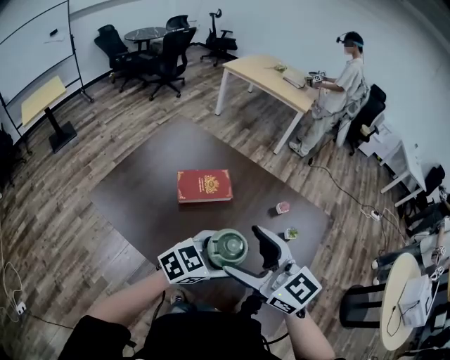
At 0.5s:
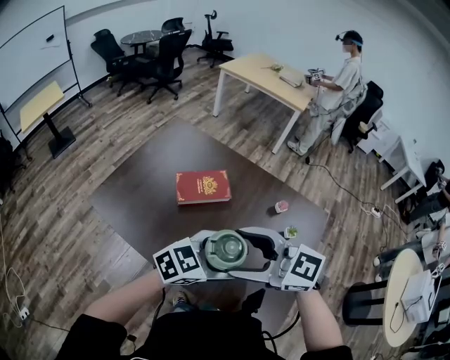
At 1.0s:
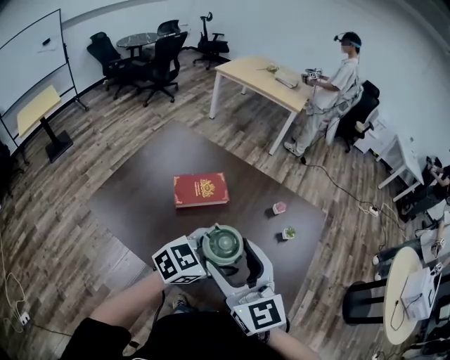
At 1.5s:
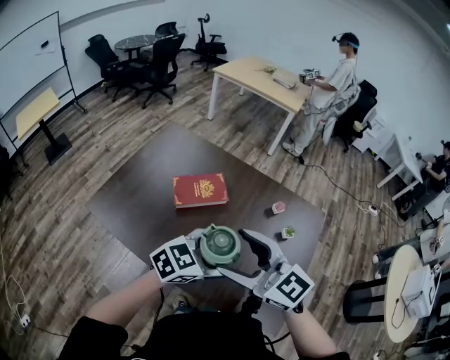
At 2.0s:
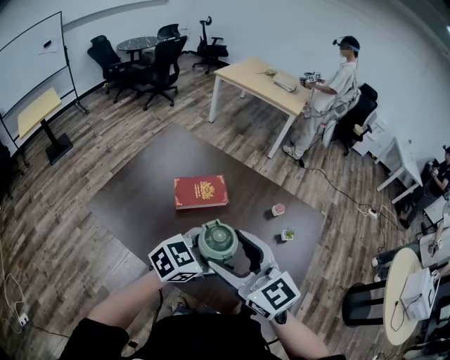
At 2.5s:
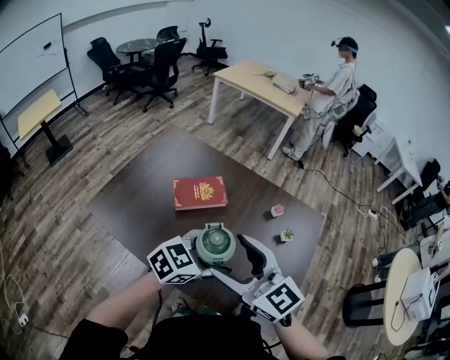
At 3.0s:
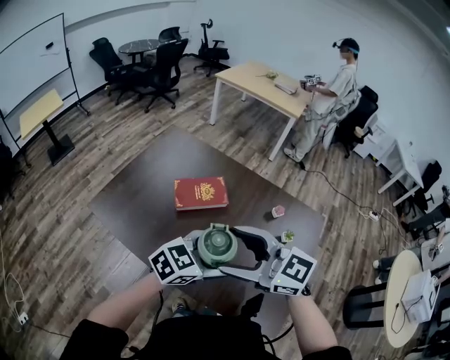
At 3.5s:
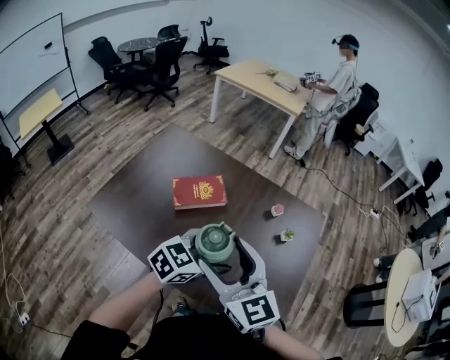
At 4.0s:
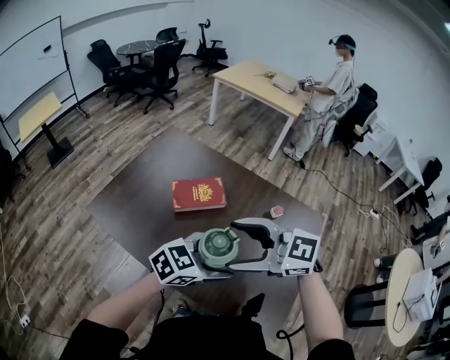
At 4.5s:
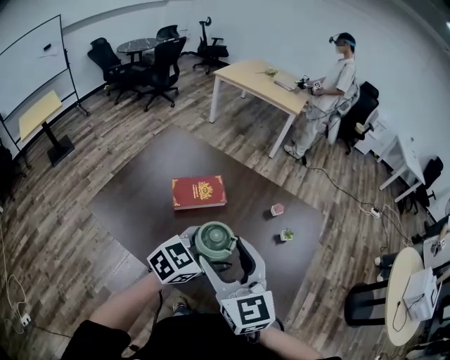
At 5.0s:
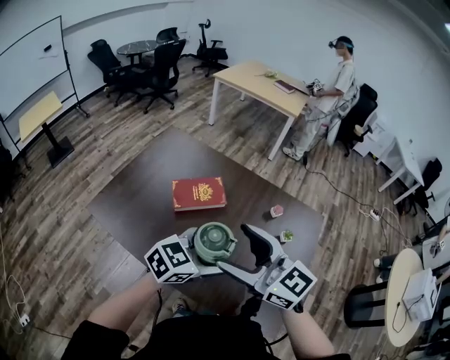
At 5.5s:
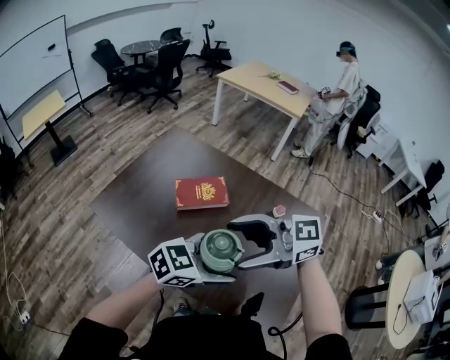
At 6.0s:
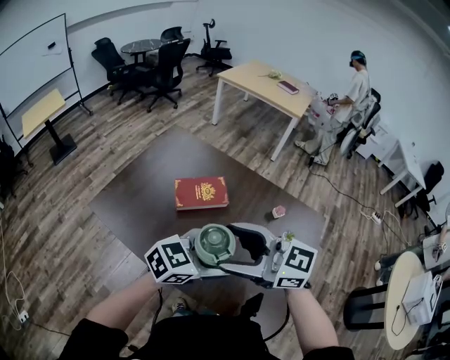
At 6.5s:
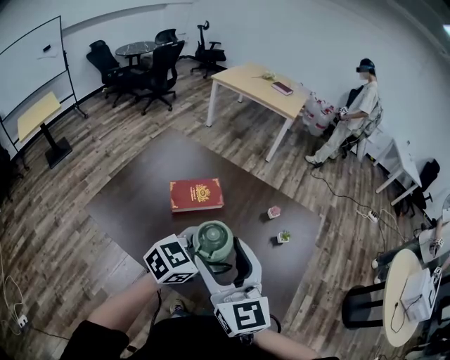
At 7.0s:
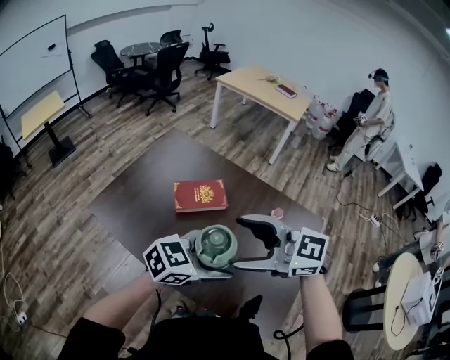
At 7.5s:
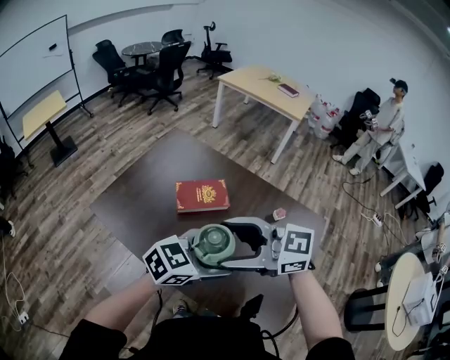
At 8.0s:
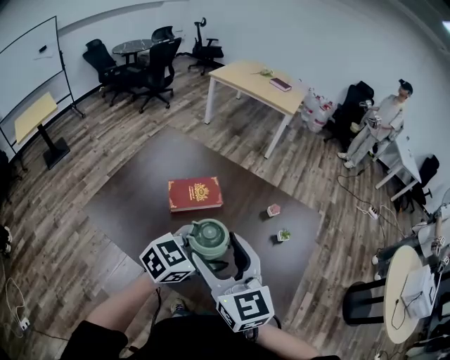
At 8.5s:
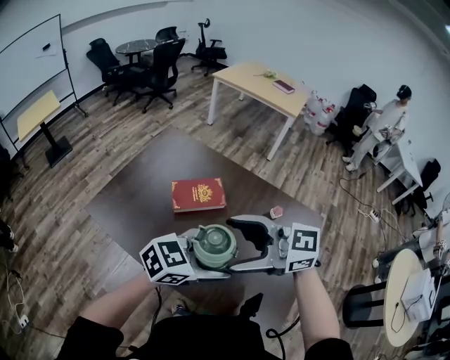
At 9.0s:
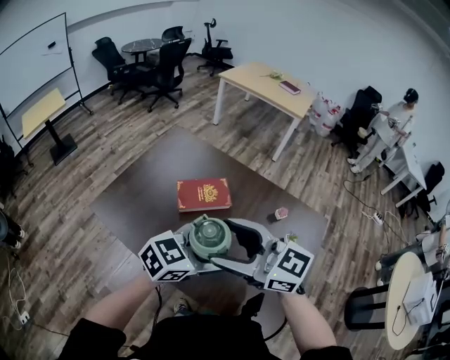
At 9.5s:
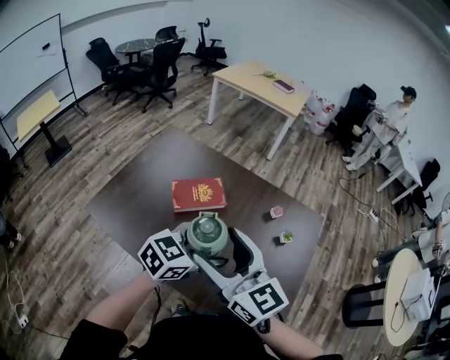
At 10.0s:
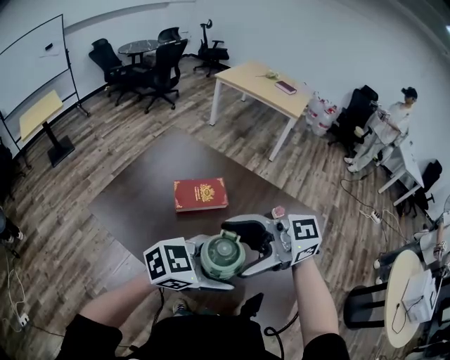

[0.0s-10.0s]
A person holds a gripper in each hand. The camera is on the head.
2.0s to 4.0s: The right gripper swivels some 40 degrees.
6.0s to 8.0s: The right gripper rotates approximately 50 degrees.
8.0s to 10.0s: The right gripper swivels some 70 degrees. Meanwhile the left gripper ends up approximately 5 cm from where it was.

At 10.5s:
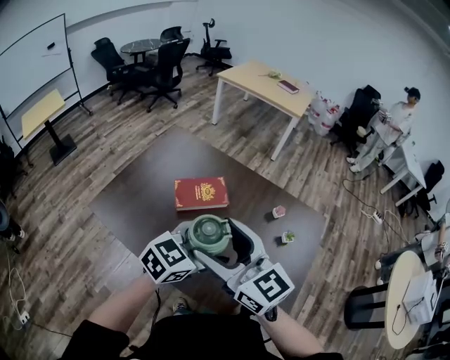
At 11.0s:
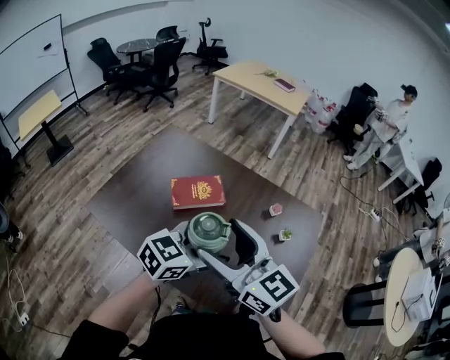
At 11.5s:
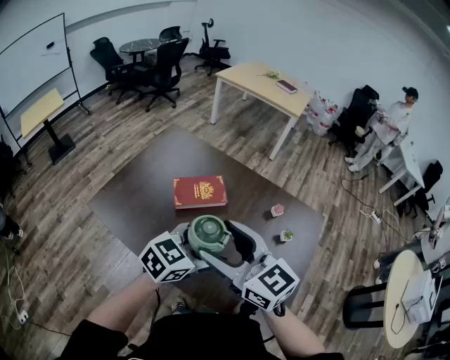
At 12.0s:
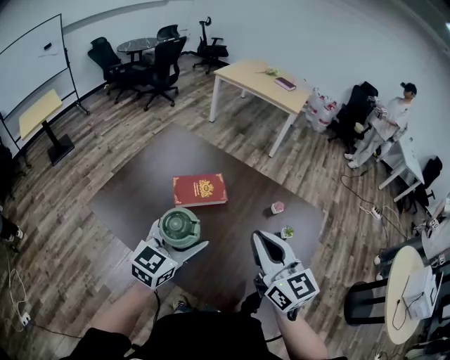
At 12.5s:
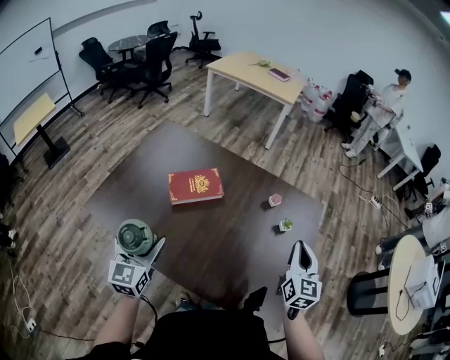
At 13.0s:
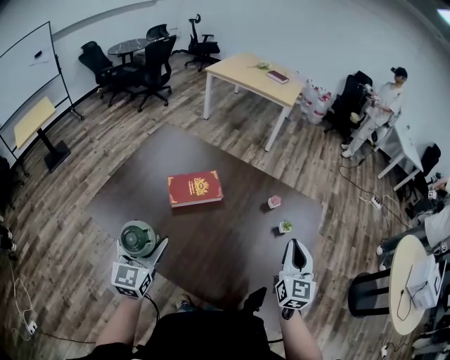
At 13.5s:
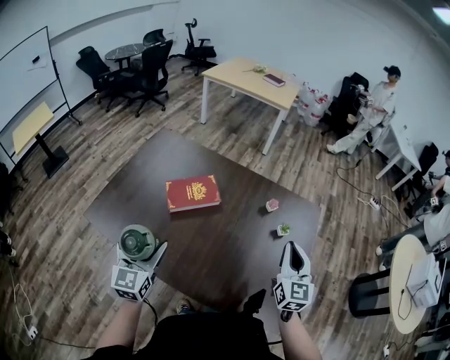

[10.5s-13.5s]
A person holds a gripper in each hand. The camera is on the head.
10.5s to 12.0s: The left gripper heads to the left, covering about 5 cm, and rotates approximately 20 degrees; the right gripper moves to the right, roughly 10 cm, and closes.
12.0s to 13.5s: The right gripper travels to the right and downward by about 20 cm, and swivels roughly 40 degrees, while the left gripper moves to the left, about 10 cm, and changes its angle by about 20 degrees.

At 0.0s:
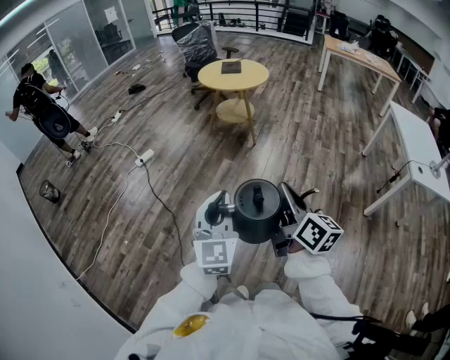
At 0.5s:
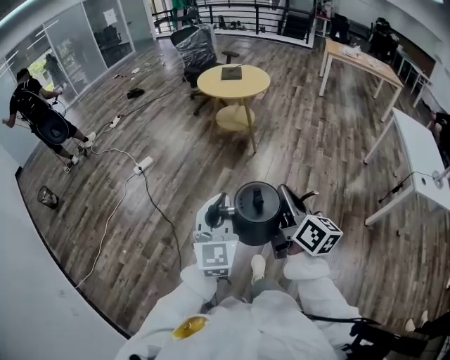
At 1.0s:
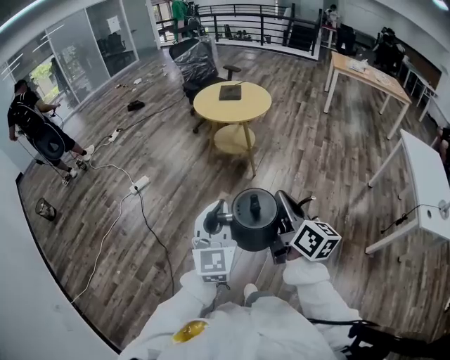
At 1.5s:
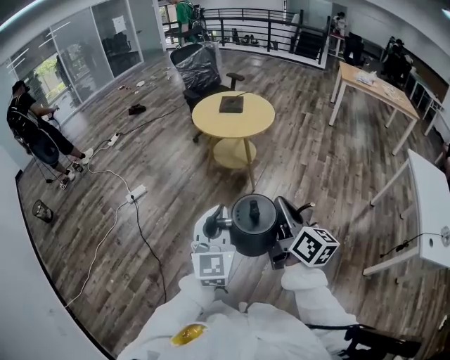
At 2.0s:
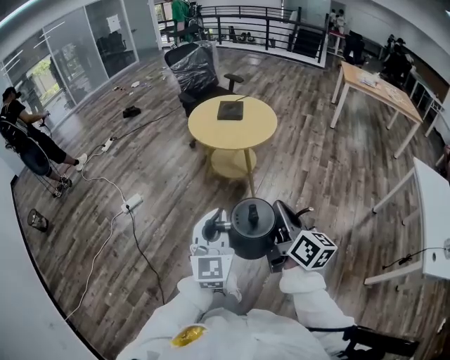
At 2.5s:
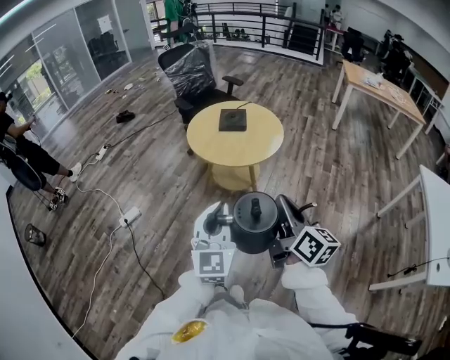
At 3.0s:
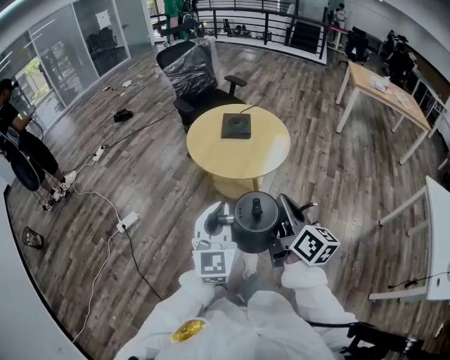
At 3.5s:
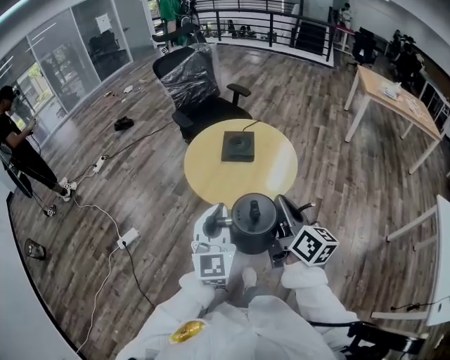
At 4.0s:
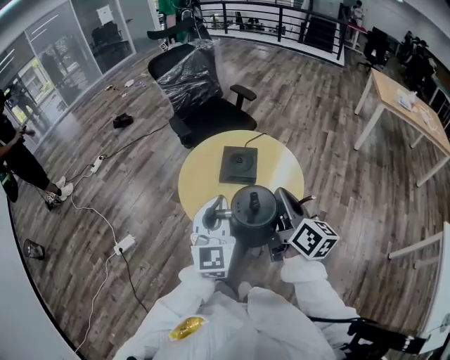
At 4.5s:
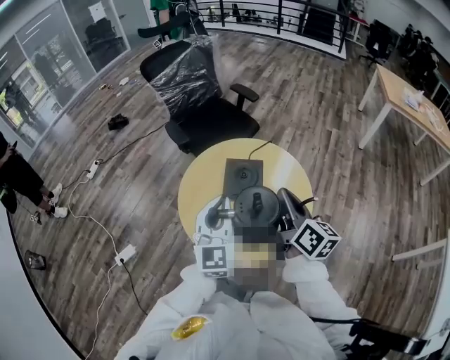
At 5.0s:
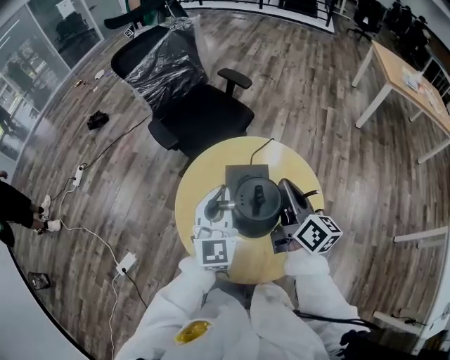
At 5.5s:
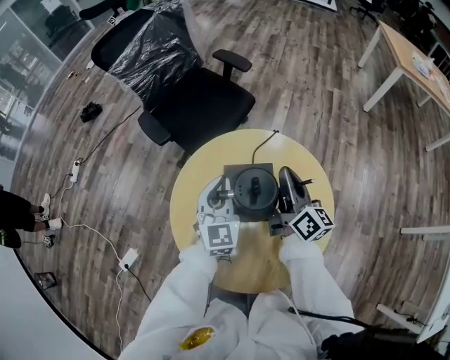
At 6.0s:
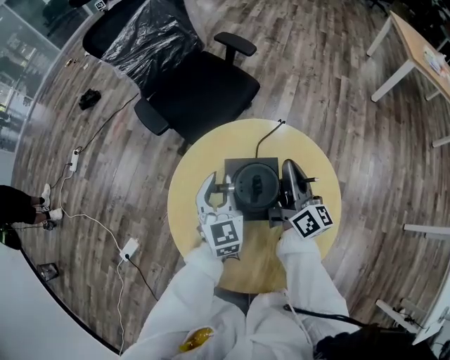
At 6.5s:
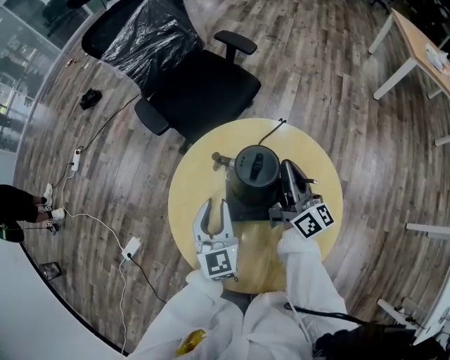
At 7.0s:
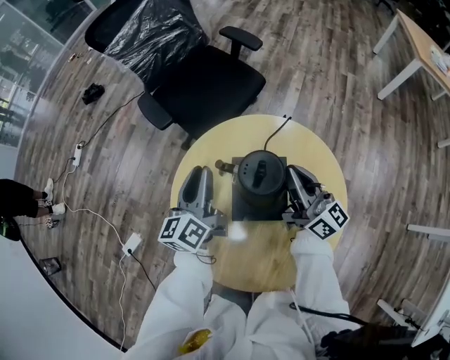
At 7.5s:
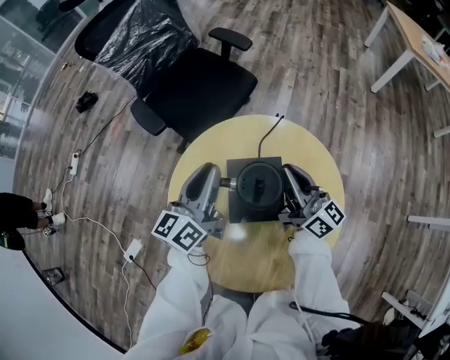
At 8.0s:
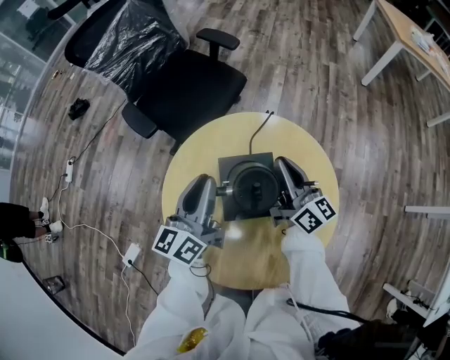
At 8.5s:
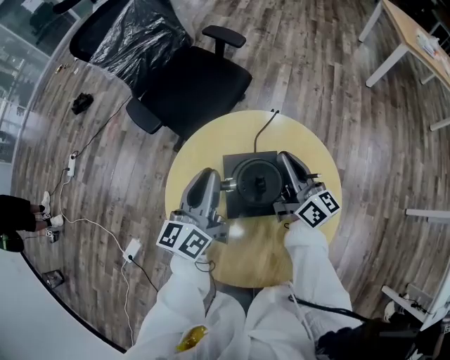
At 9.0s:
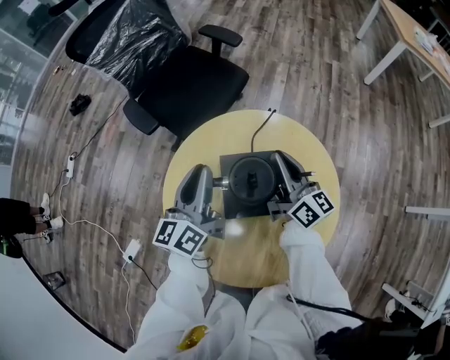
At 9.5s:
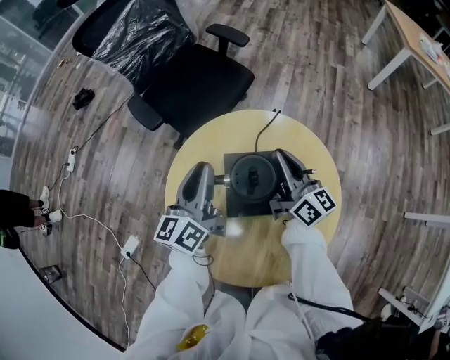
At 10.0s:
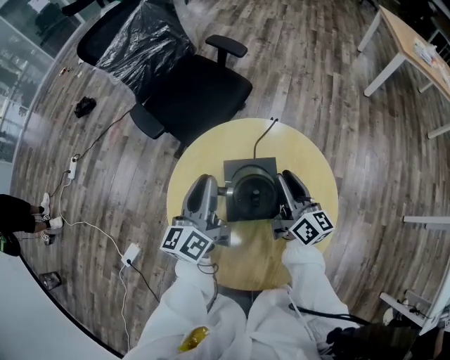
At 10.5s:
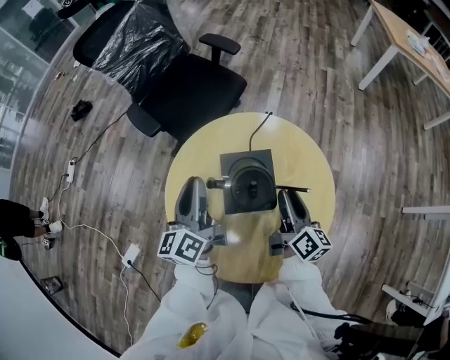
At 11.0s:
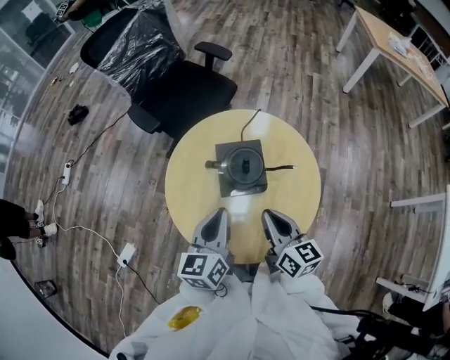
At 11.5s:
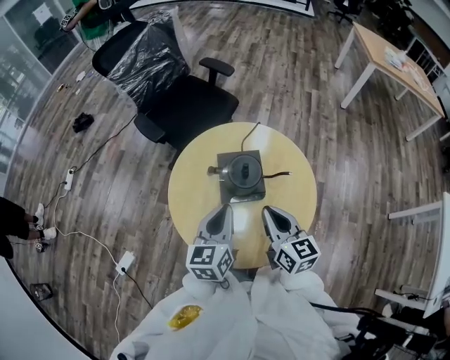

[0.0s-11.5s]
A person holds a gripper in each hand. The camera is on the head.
0.0s to 2.0s: Both grippers are carried forward, about 50 cm.
2.0s to 4.0s: The pair of grippers is taken forward, roughly 60 cm.
4.0s to 6.0s: The two grippers go some 40 cm forward and downward.
6.0s to 7.5s: The left gripper shifts approximately 10 cm upward, moves roughly 5 cm backward and comes back, and changes its angle by about 50 degrees.
7.5s to 9.5s: The grippers move only a little.
9.5s to 11.5s: Both grippers move backward, about 20 cm. The right gripper rotates approximately 30 degrees, and opens, then closes once more. The left gripper changes its angle by approximately 20 degrees.

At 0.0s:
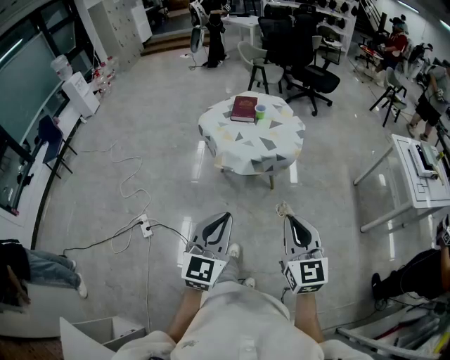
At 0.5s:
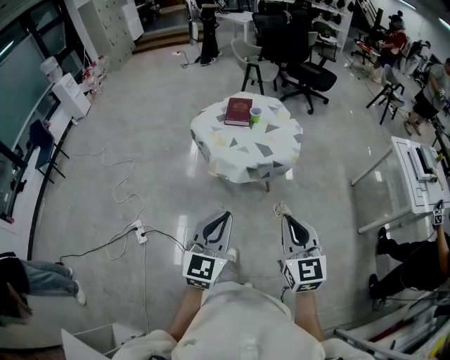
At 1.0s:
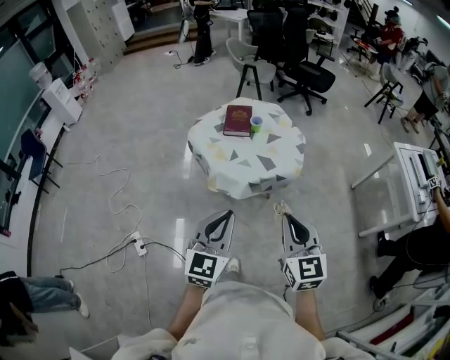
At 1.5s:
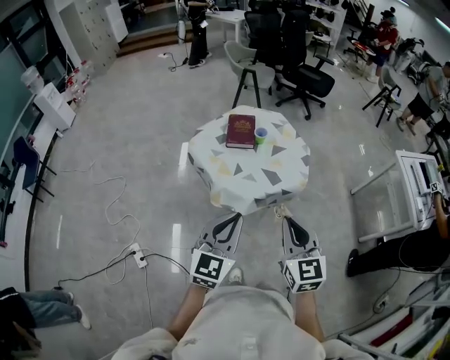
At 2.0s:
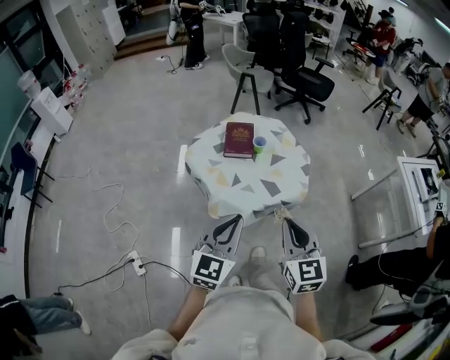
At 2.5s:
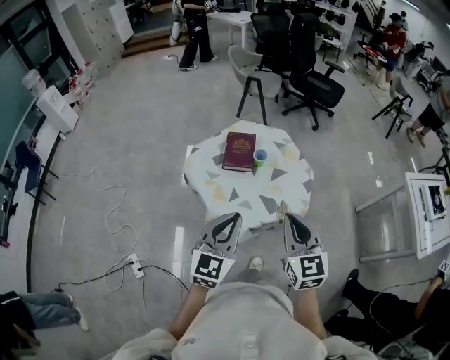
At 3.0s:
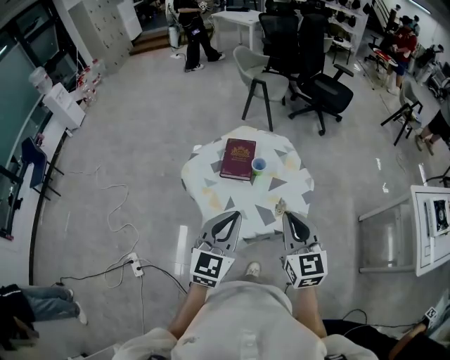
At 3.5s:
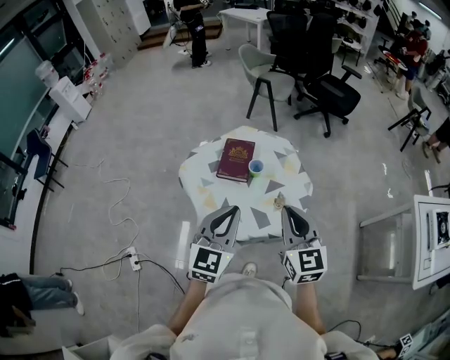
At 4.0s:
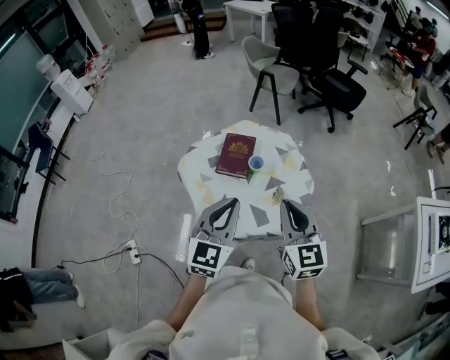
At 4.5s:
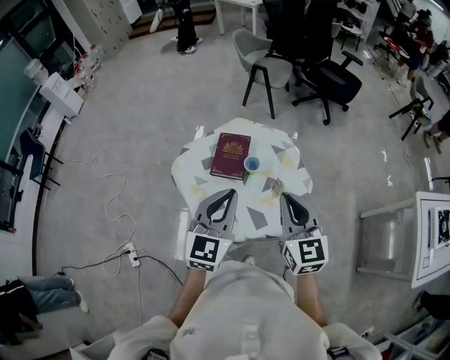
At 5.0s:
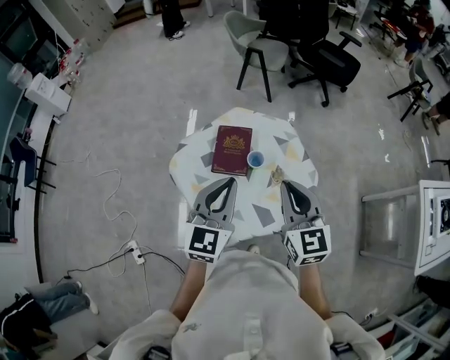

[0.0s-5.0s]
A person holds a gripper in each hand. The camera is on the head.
0.0s to 2.5s: Both grippers are carried forward, roughly 40 cm.
2.5s to 5.0s: Both grippers travel together forward, some 20 cm.
